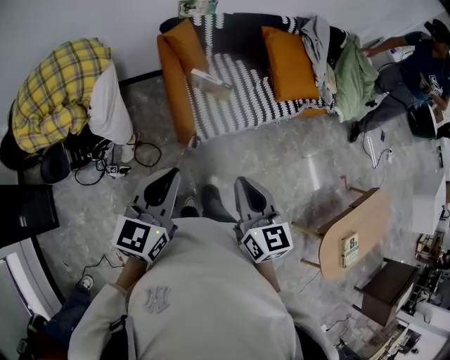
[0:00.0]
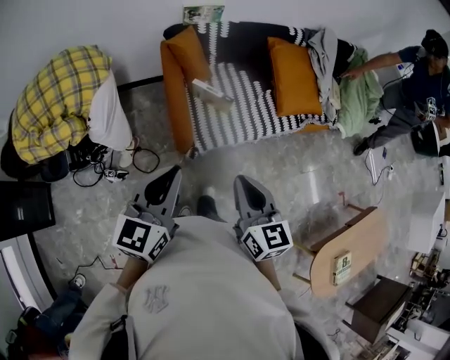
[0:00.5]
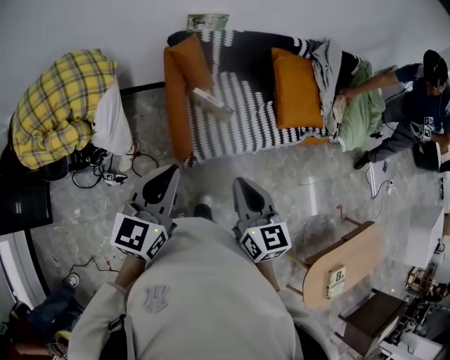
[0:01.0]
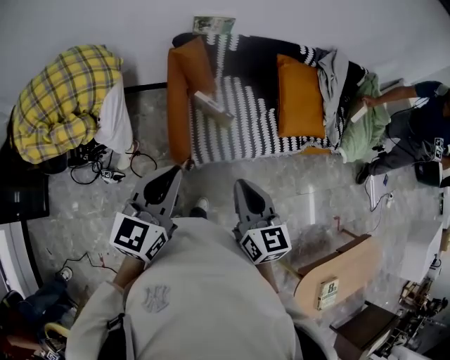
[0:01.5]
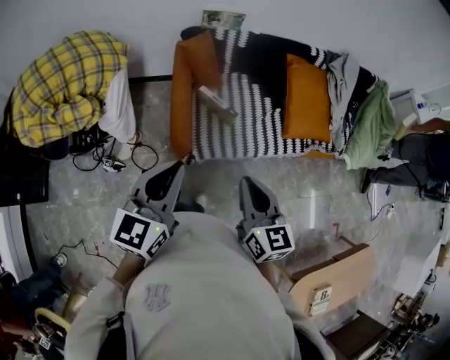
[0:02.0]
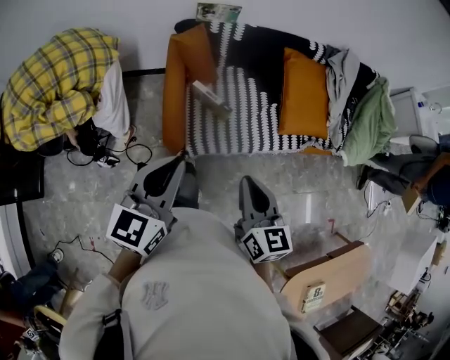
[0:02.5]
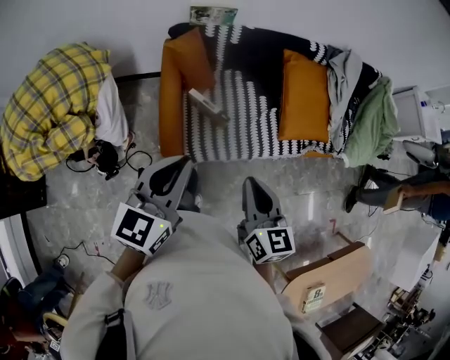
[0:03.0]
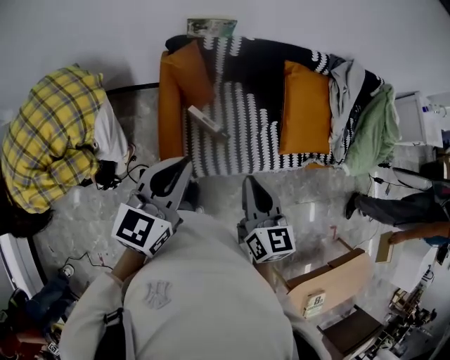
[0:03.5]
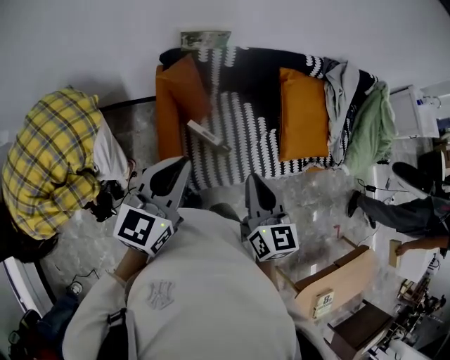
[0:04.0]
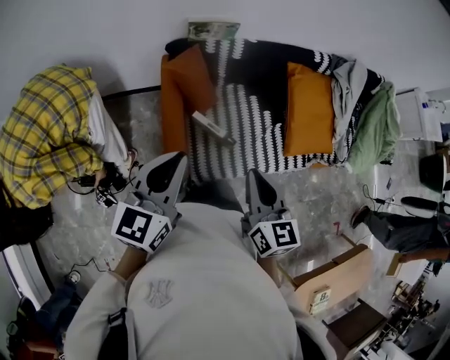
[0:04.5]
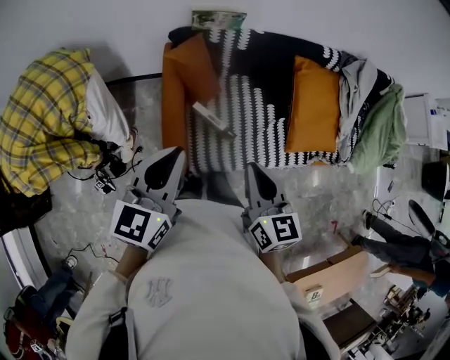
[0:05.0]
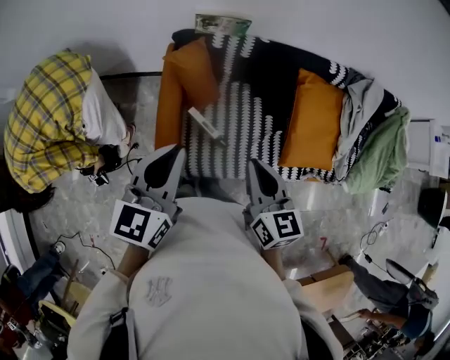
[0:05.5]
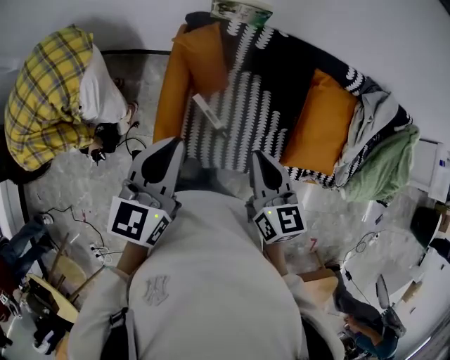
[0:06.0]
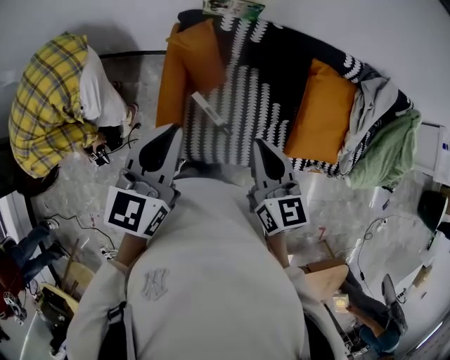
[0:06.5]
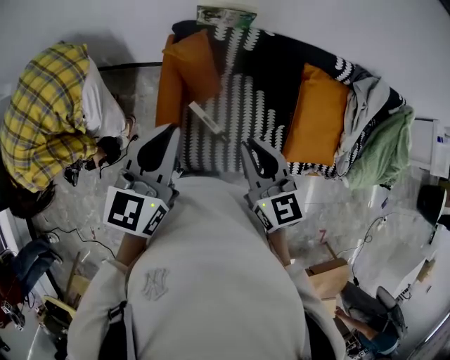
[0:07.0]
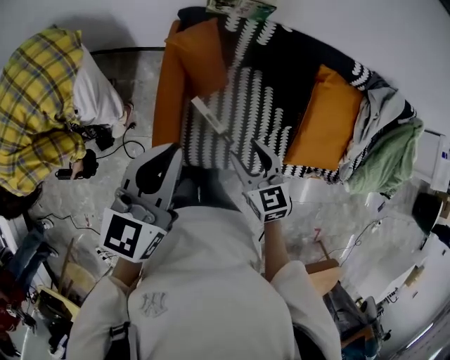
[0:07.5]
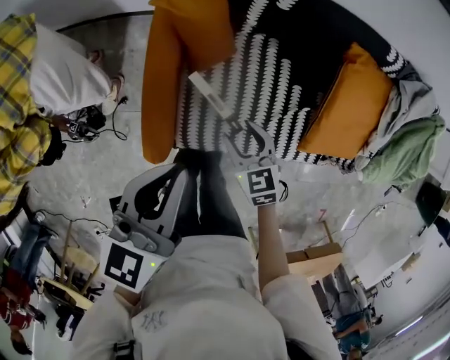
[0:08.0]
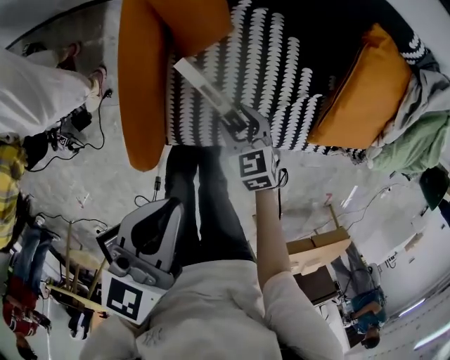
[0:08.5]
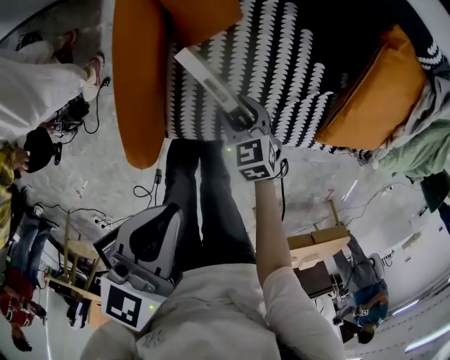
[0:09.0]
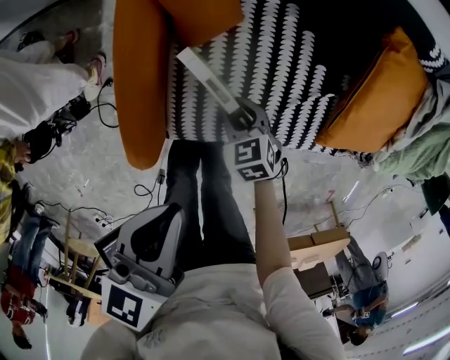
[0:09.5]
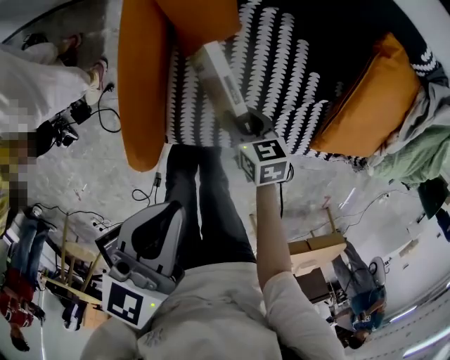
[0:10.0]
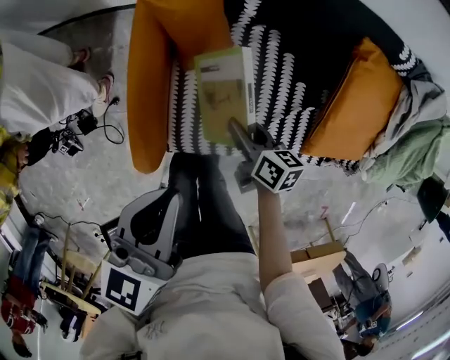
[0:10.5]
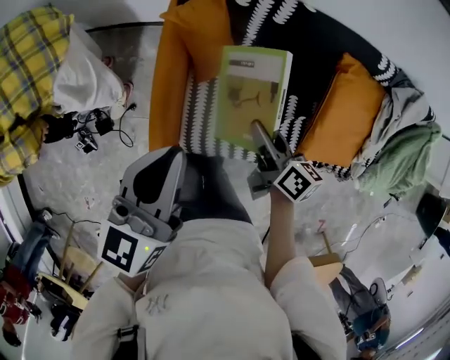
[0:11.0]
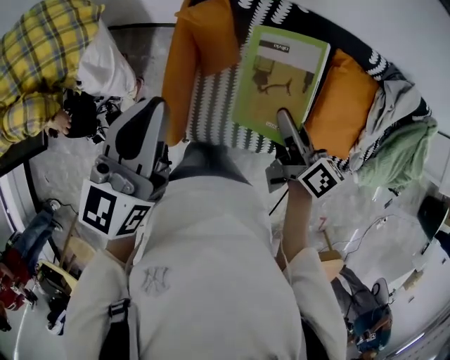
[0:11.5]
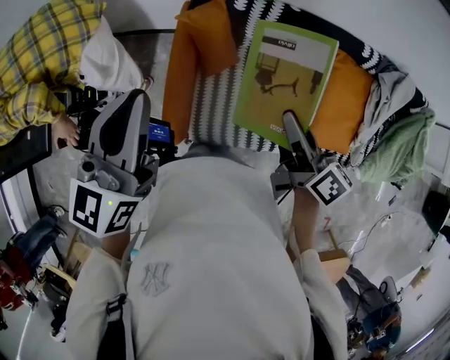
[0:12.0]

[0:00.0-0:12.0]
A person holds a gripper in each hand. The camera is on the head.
0:00.0 to 0:02.0: Both grippers travel together forward and to the right, approximately 15 cm.
0:02.0 to 0:04.0: Both grippers move forward, approximately 20 cm.
0:04.0 to 0:06.0: The right gripper moves forward, roughly 10 cm, and swivels approximately 20 degrees. The left gripper is displaced forward by roughly 5 cm, and rotates roughly 20 degrees.
0:06.0 to 0:08.0: The right gripper goes approximately 30 cm downward, changes its angle by approximately 30 degrees, and opens its fingers. Meanwhile the left gripper shifts roughly 15 cm downward.
0:08.0 to 0:10.0: The left gripper shifts approximately 10 cm downward, while the right gripper moves downward, approximately 15 cm, rotates about 20 degrees, and closes.
0:10.0 to 0:12.0: The left gripper shifts some 25 cm upward, and changes its angle by approximately 30 degrees. Meanwhile the right gripper is displaced upward by roughly 40 cm, and tips its fingers upward by some 40 degrees.

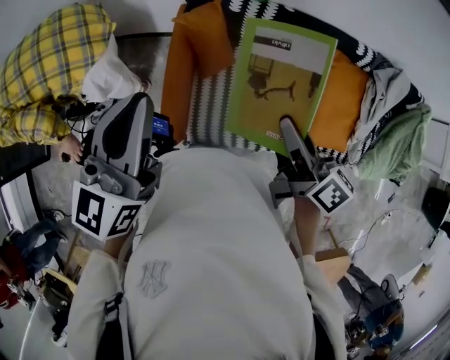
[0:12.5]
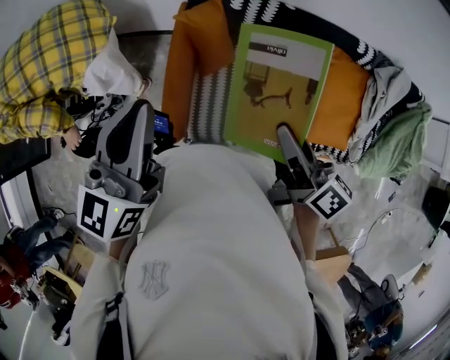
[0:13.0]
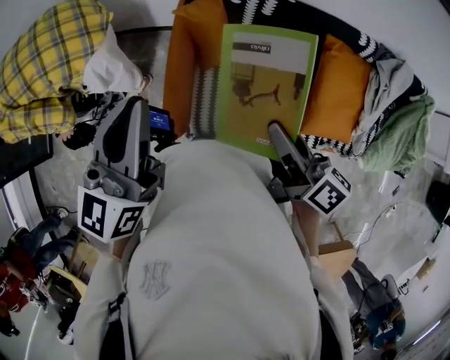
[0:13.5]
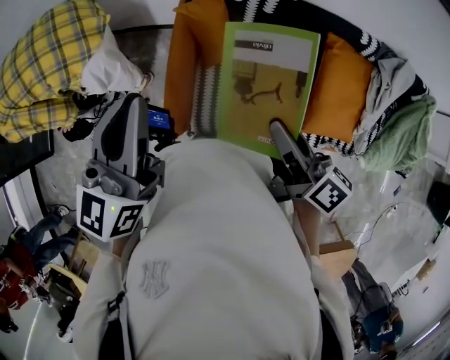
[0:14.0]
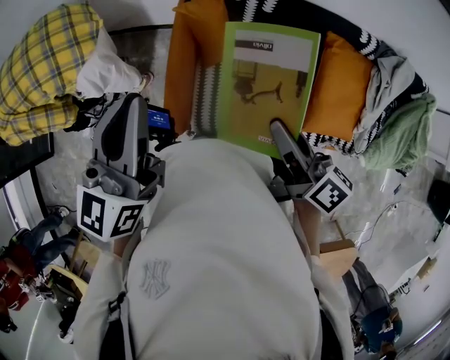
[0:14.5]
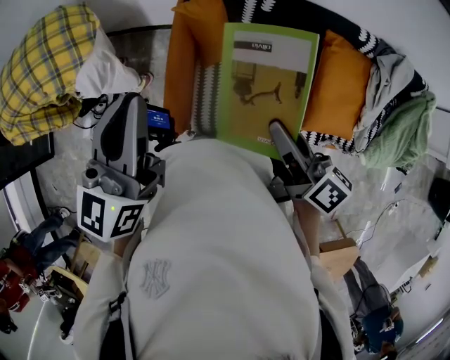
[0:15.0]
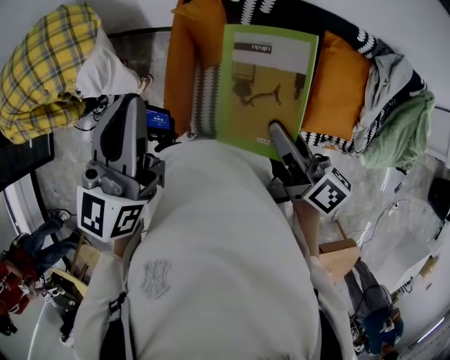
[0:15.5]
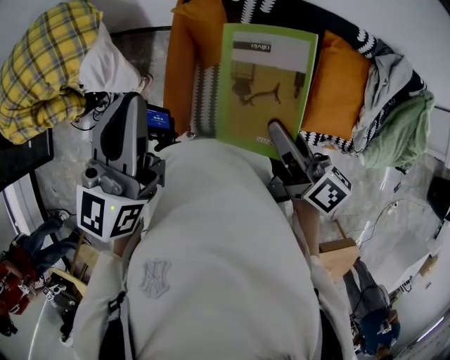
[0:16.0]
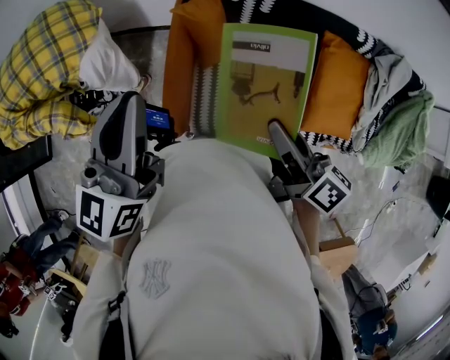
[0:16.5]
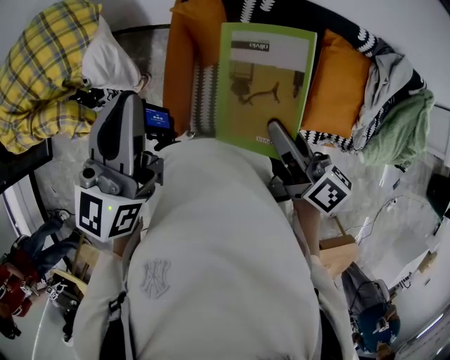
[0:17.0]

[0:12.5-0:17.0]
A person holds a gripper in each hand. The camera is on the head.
0:12.5 to 0:14.5: The grippers move only a little.
0:14.5 to 0:17.0: The two grippers keep their place.

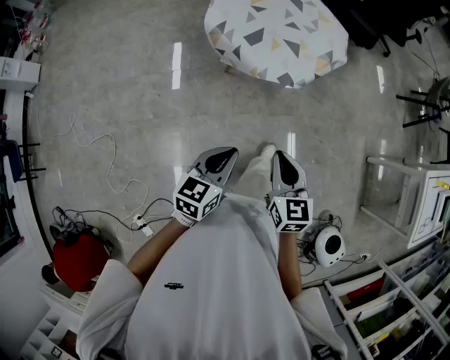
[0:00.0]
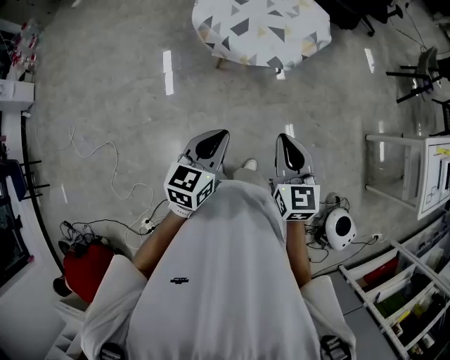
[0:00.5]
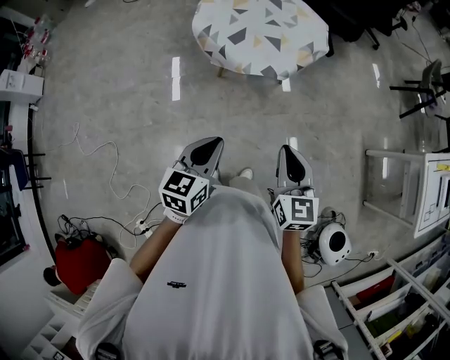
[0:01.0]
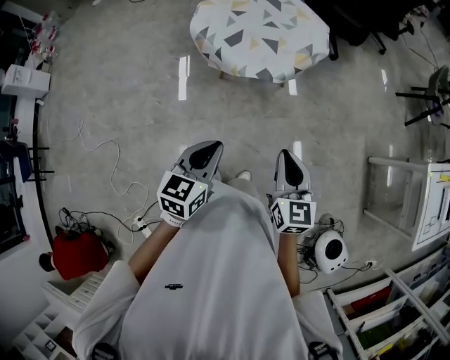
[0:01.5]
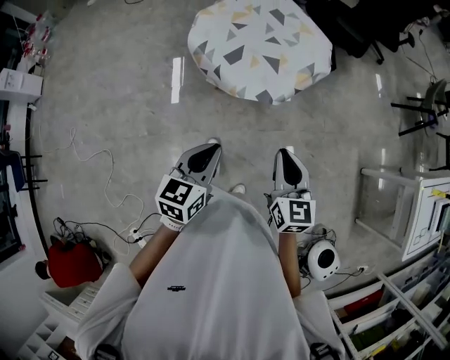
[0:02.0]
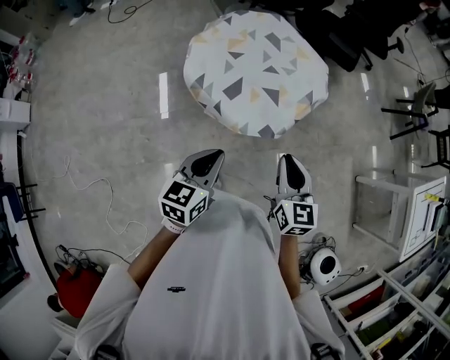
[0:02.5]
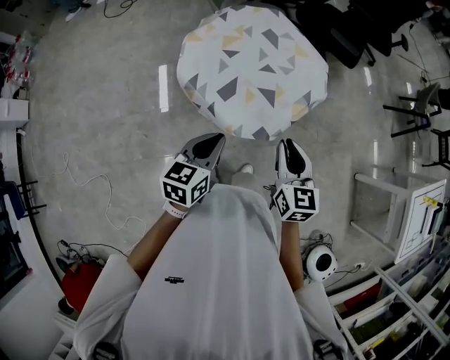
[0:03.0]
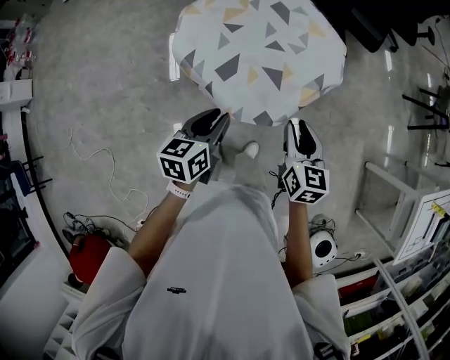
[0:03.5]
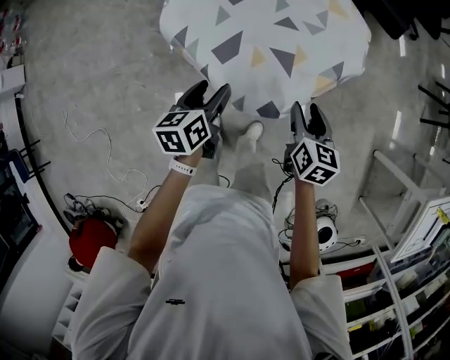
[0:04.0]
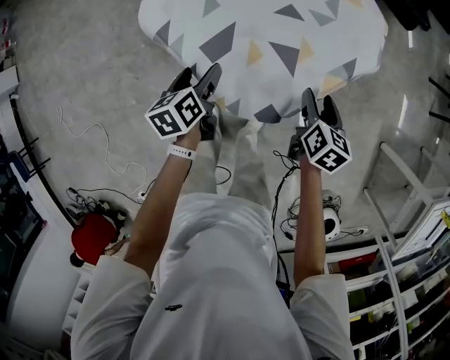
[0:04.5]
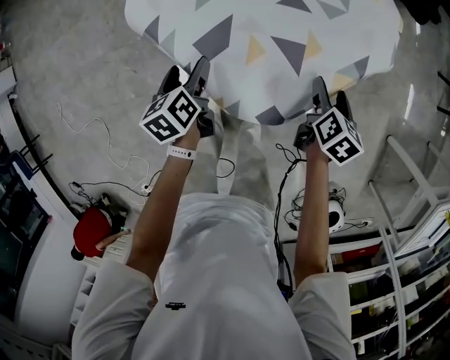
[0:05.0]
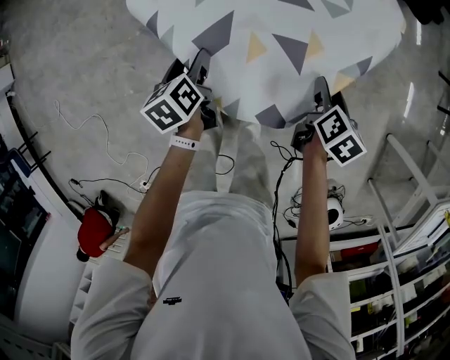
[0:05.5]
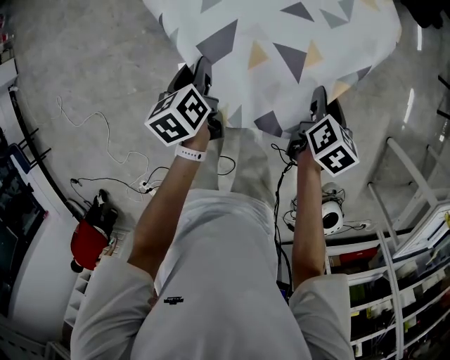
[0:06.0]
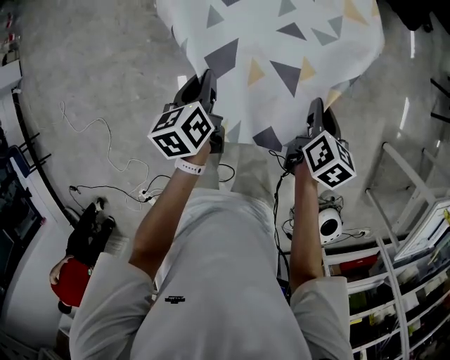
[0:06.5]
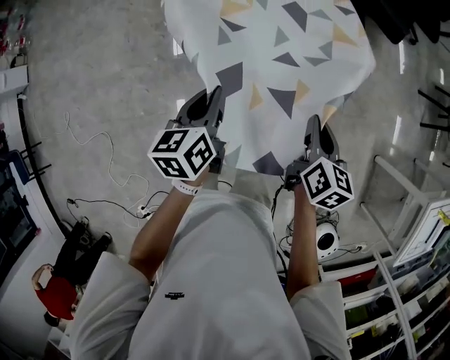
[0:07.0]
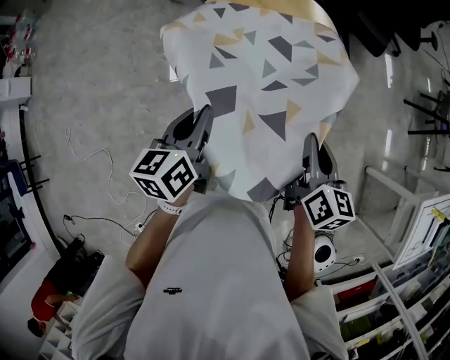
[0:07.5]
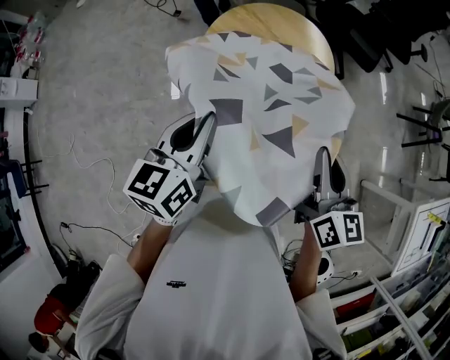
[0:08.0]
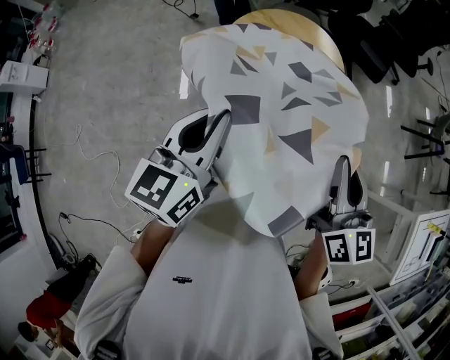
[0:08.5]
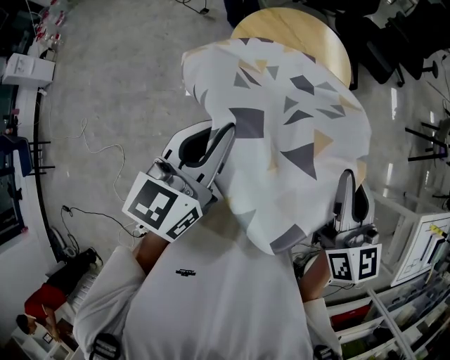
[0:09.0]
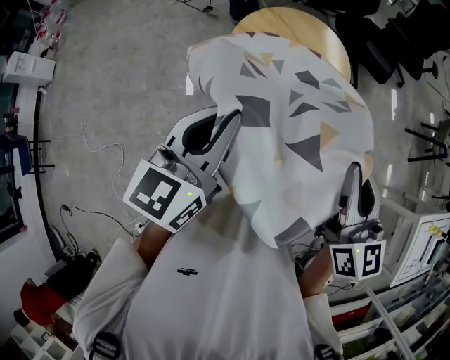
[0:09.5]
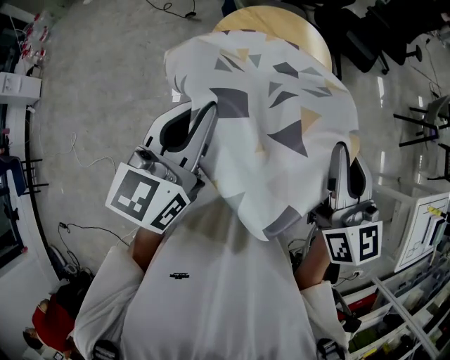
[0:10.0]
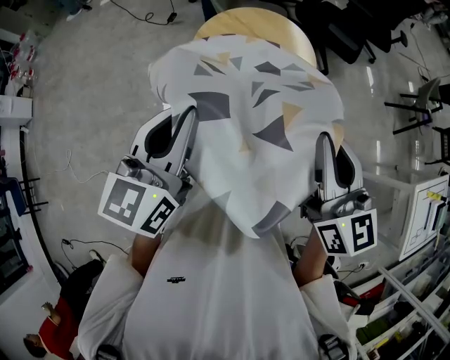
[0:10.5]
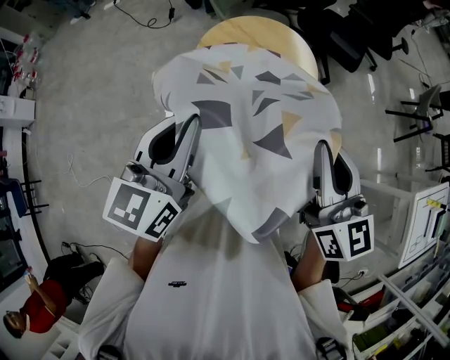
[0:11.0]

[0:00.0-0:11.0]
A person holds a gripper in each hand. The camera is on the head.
0:00.0 to 0:02.0: The right gripper is displaced forward and to the right by roughly 10 cm. Meanwhile the left gripper shifts approximately 10 cm forward.
0:02.0 to 0:03.5: The grippers both shift forward by about 25 cm.
0:03.5 to 0:05.5: Both grippers move downward and forward, about 25 cm. The right gripper swivels roughly 40 degrees, and opens its fingers, while the left gripper changes its angle by about 40 degrees, and opens.
0:05.5 to 0:07.5: The left gripper is displaced upward by about 30 cm, turns by about 30 degrees, and closes; the right gripper travels upward and backward by about 30 cm, changes its angle by roughly 30 degrees, and closes its fingers.
0:07.5 to 0:09.0: Both grippers move upward and backward, approximately 20 cm. The right gripper swivels about 30 degrees. The left gripper turns by some 30 degrees.
0:09.0 to 0:11.0: The grippers make only small movements.
